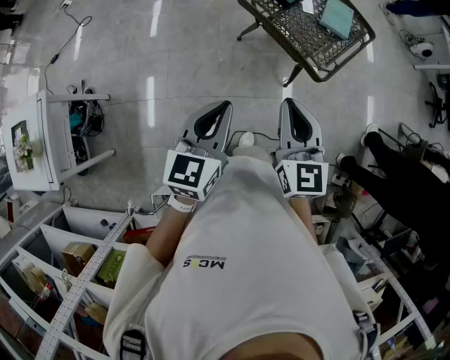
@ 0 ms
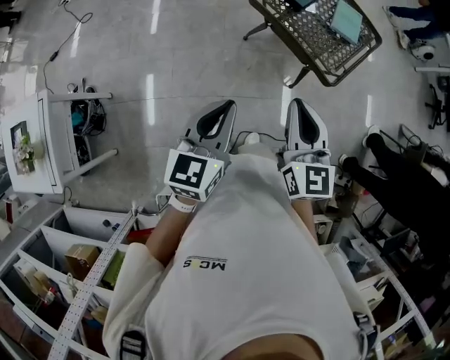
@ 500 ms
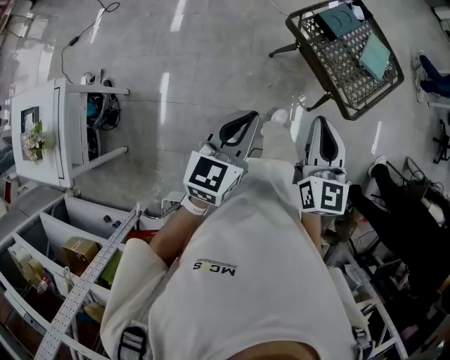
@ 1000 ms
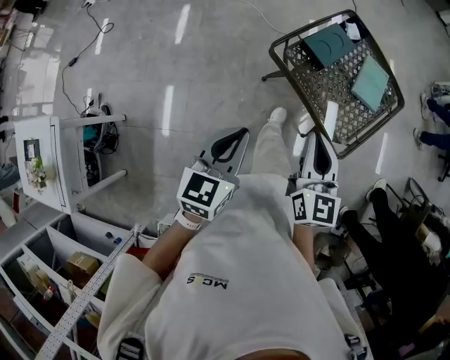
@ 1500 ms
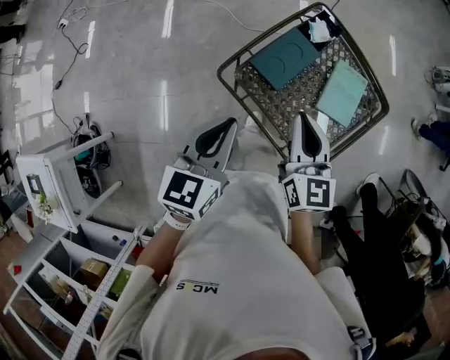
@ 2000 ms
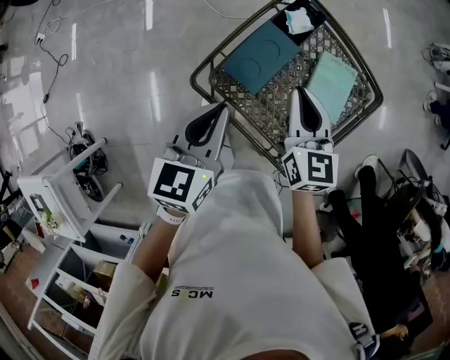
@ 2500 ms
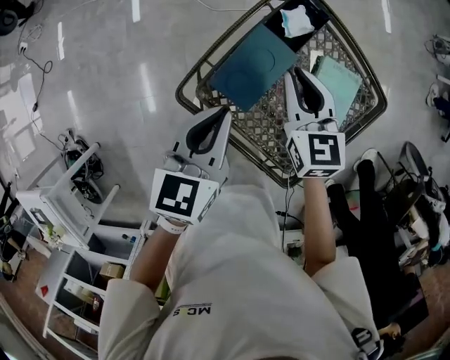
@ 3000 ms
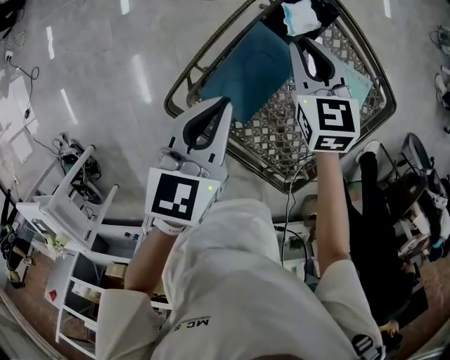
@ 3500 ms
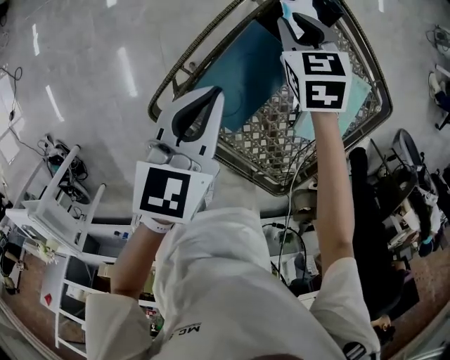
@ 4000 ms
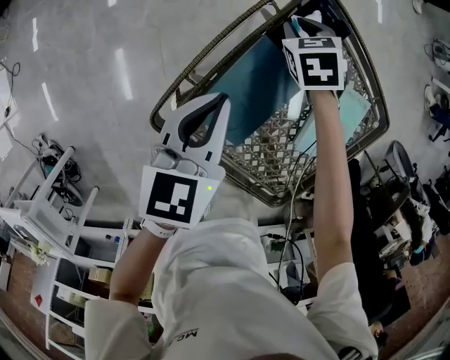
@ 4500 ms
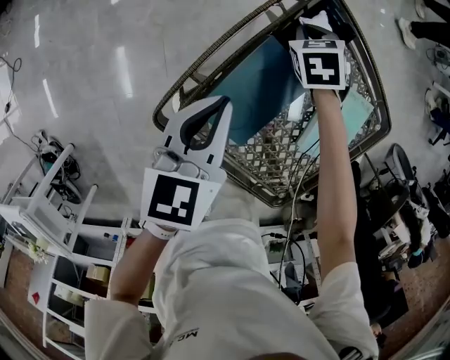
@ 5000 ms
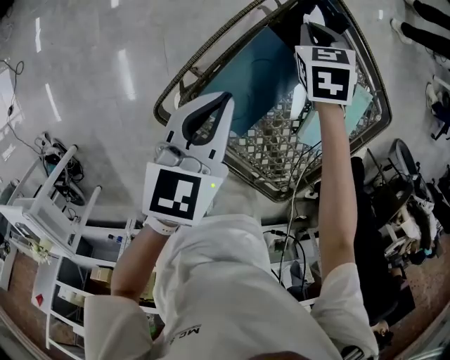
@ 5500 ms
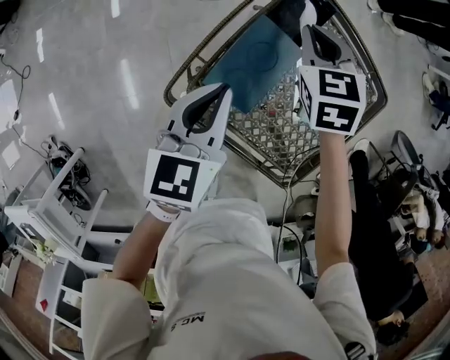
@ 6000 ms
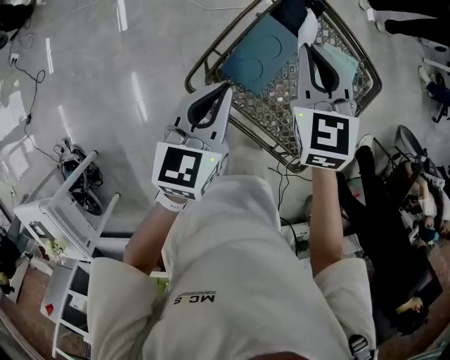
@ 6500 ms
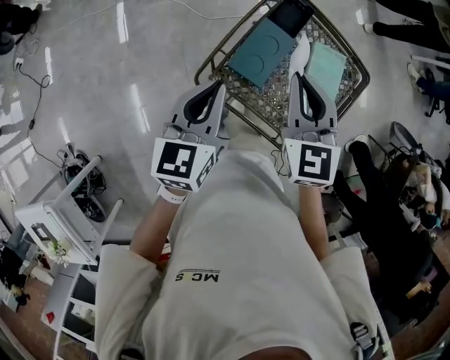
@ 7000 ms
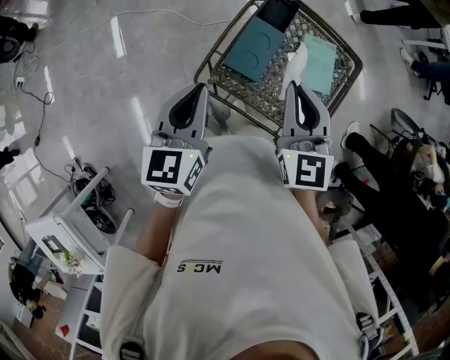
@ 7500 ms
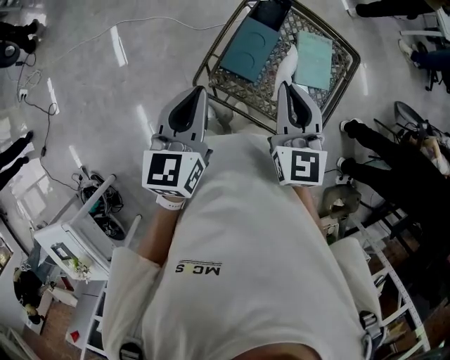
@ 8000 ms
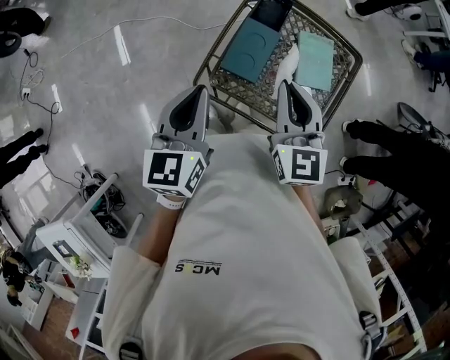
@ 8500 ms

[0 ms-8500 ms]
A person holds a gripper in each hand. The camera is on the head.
0 ms to 2000 ms: The grippers both shift forward by approximately 40 cm.
2000 ms to 4000 ms: Both grippers travel together forward and downward, approximately 30 cm. The right gripper angles its fingers downward, by some 40 degrees.
4000 ms to 6500 ms: The left gripper travels upward and backward by roughly 10 cm; the right gripper shifts some 25 cm upward and backward, and turns by some 20 degrees.
6500 ms to 8500 ms: The right gripper moves backward and upward, roughly 15 cm, and rotates about 20 degrees, while the left gripper moves upward and to the left, roughly 10 cm.

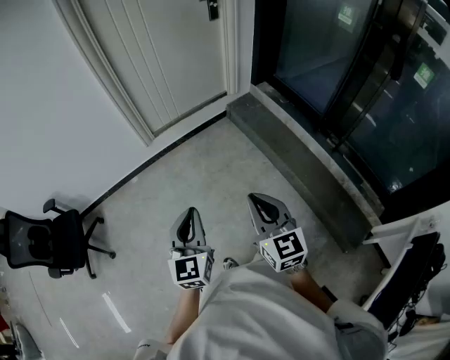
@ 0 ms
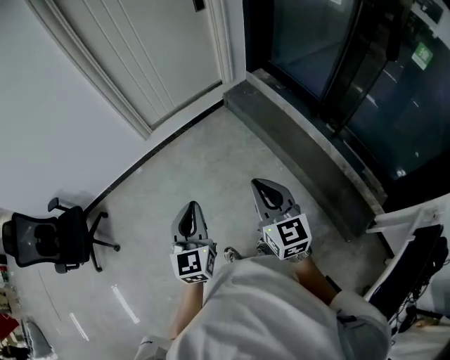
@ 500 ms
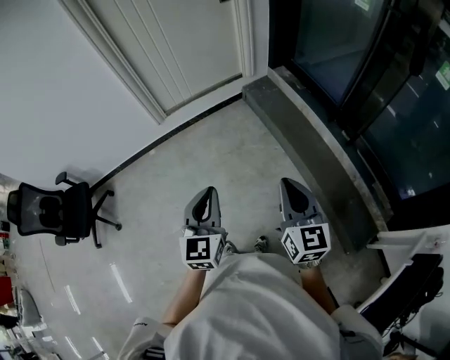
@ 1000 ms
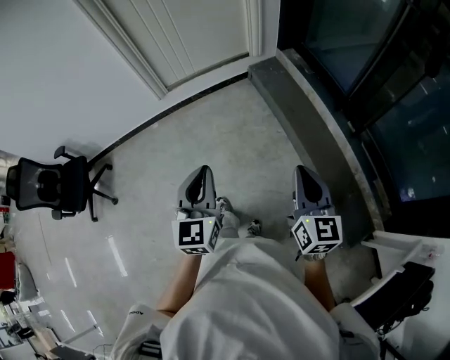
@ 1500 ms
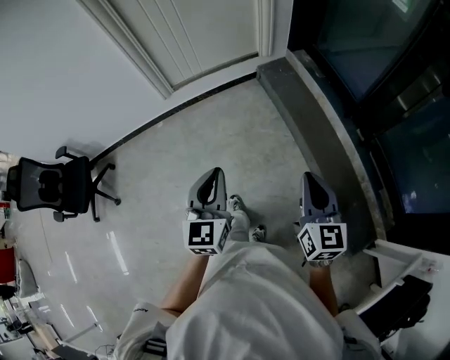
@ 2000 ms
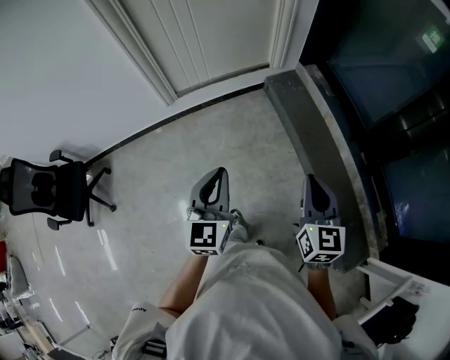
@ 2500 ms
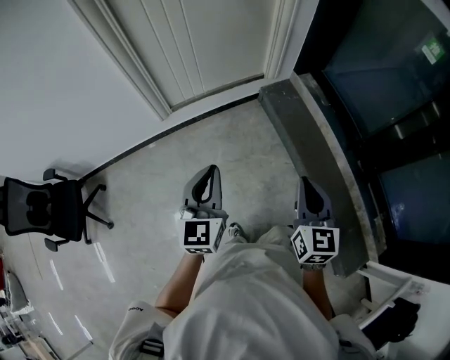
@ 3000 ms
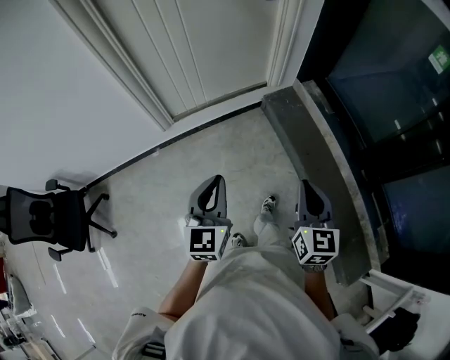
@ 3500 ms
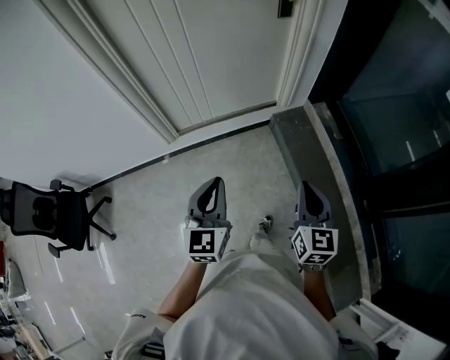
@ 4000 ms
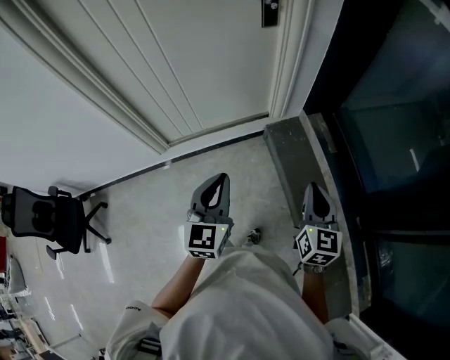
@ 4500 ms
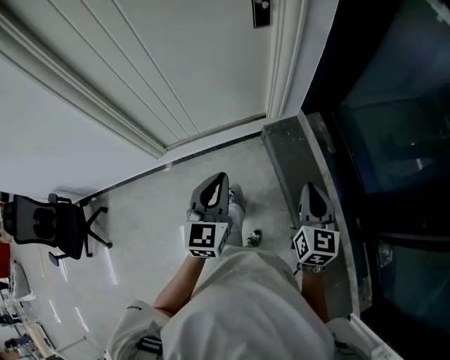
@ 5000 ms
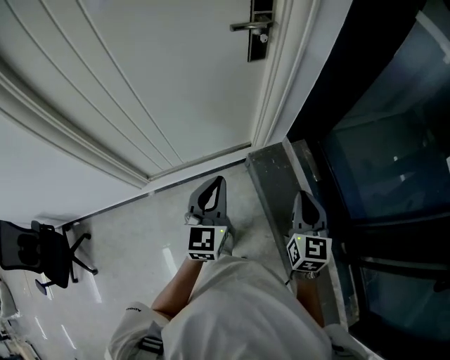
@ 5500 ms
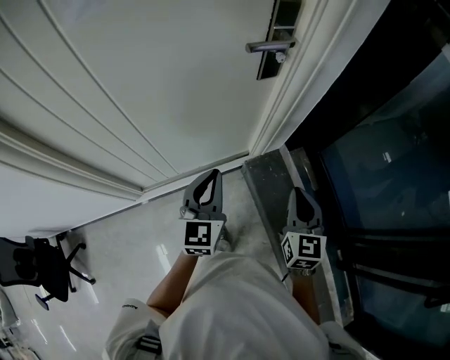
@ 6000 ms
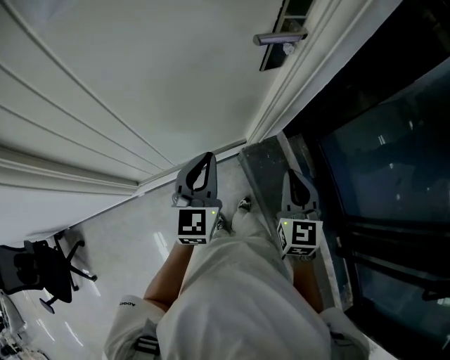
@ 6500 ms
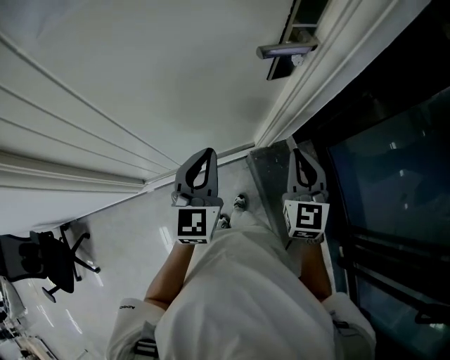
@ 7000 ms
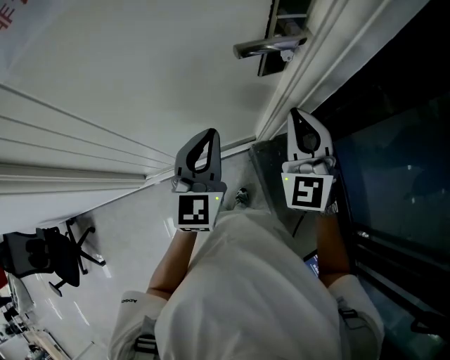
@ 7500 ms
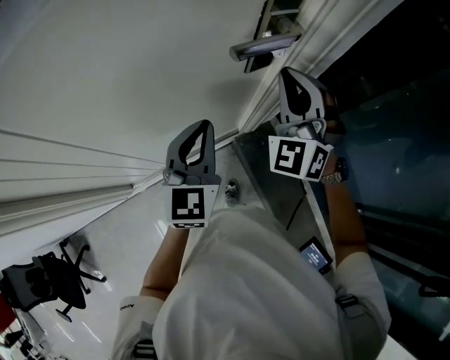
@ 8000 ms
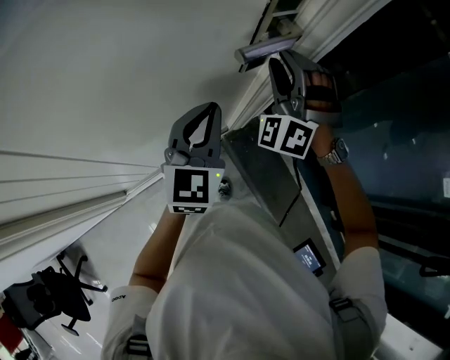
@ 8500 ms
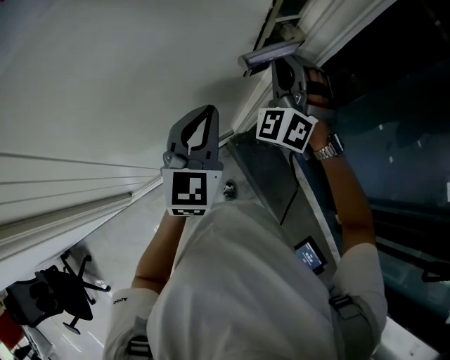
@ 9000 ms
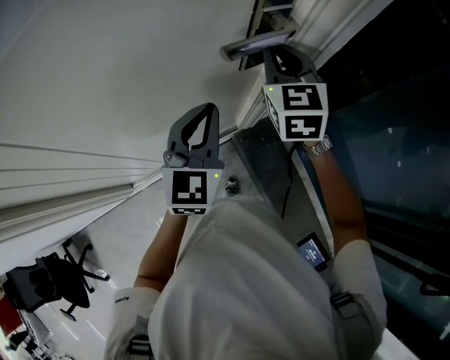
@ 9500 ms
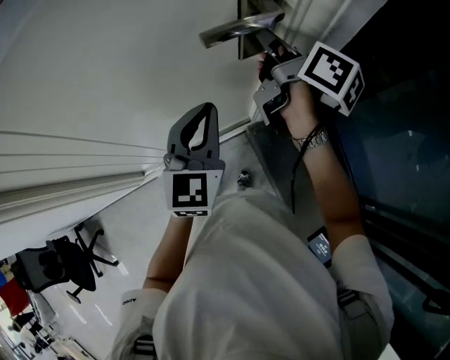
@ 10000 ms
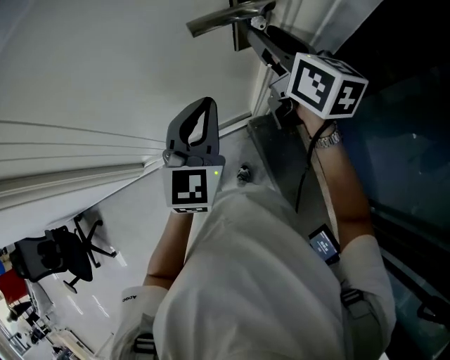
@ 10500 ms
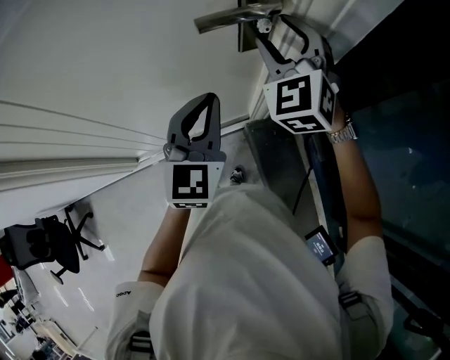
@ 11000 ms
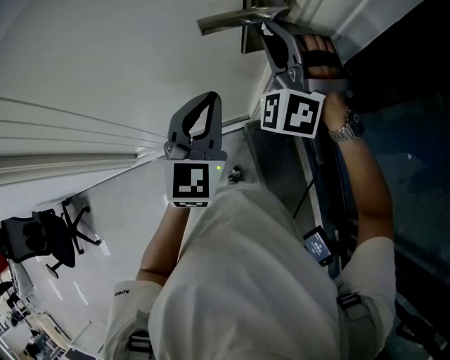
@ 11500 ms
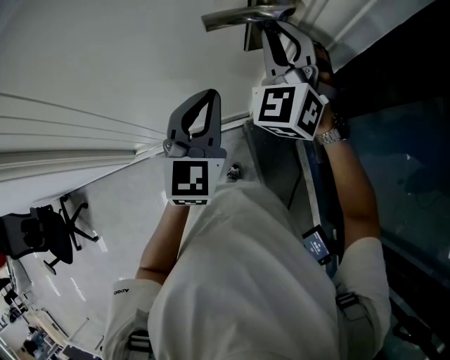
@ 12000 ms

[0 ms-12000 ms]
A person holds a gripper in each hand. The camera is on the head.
0 ms to 2000 ms: The right gripper travels to the right by approximately 25 cm. The left gripper shifts roughly 20 cm to the right and forward.
2000 ms to 4000 ms: Both grippers travel together forward, roughly 40 cm.
4000 ms to 6000 ms: Both grippers are carried forward, approximately 40 cm.
6000 ms to 8000 ms: The left gripper moves forward, about 15 cm, while the right gripper shifts approximately 30 cm forward and upward, and twists about 60 degrees counterclockwise, seen from behind.
8000 ms to 10000 ms: The right gripper shifts approximately 5 cm forward, rolls clockwise, seen from behind, by approximately 110 degrees, and opens, then closes once more.
10000 ms to 12000 ms: The right gripper twists approximately 110 degrees counterclockwise, seen from behind, and opens and closes again.

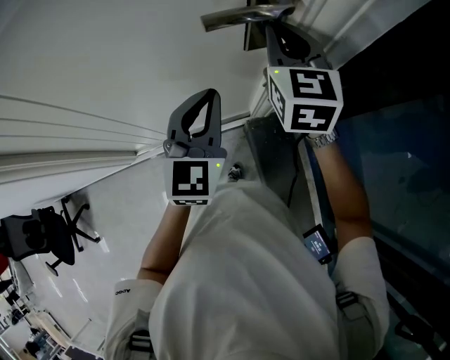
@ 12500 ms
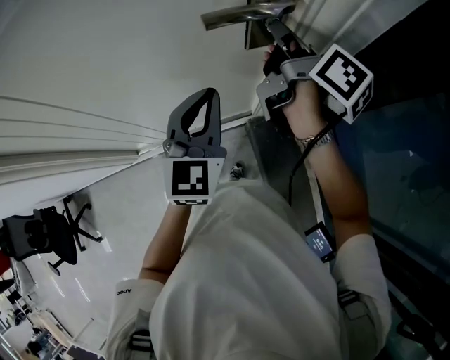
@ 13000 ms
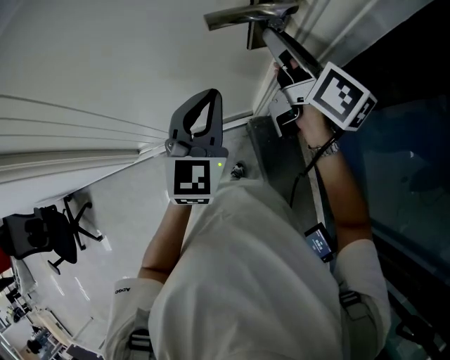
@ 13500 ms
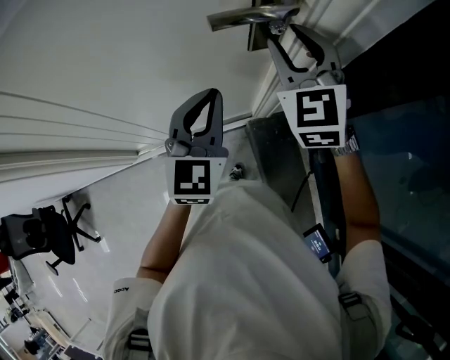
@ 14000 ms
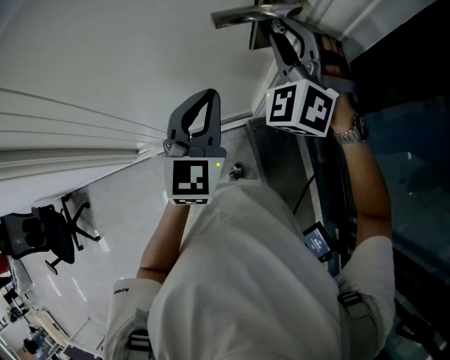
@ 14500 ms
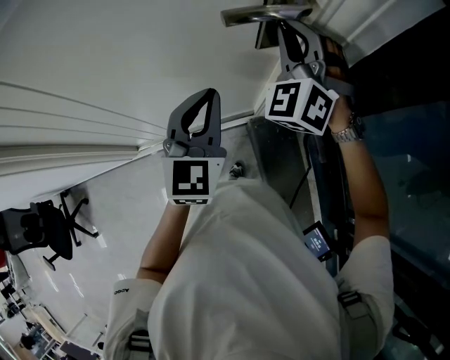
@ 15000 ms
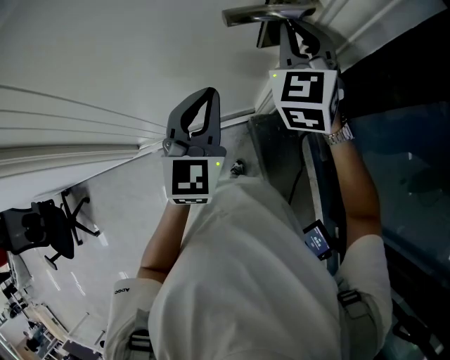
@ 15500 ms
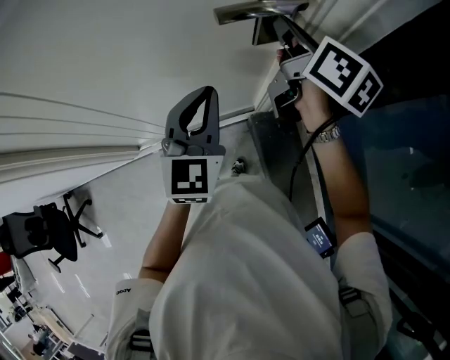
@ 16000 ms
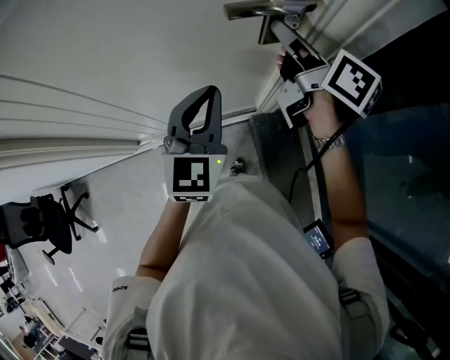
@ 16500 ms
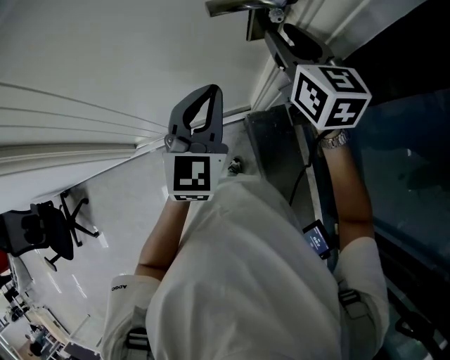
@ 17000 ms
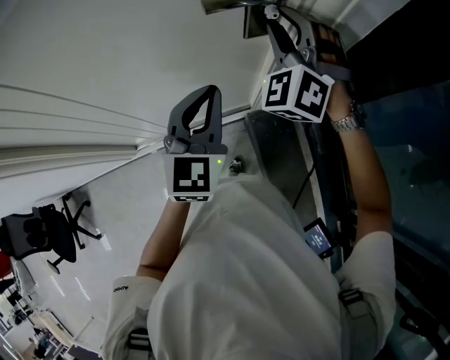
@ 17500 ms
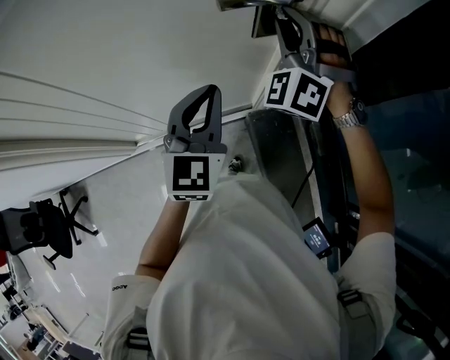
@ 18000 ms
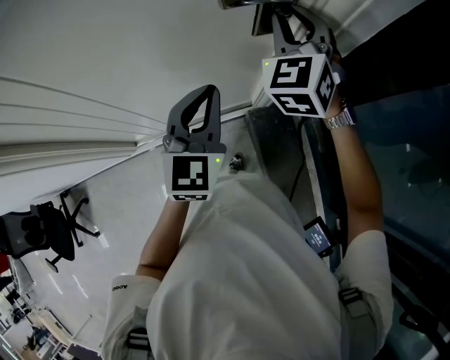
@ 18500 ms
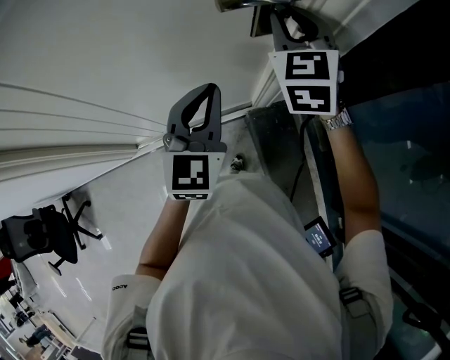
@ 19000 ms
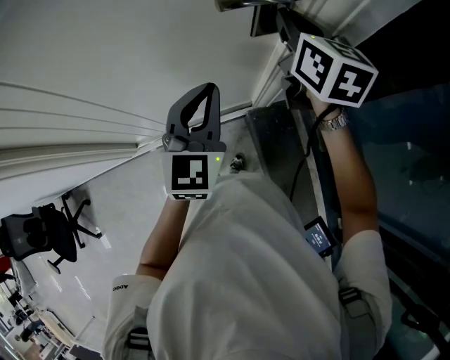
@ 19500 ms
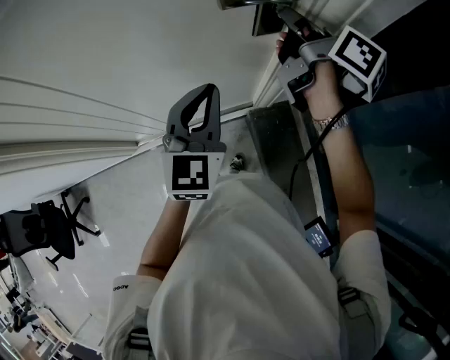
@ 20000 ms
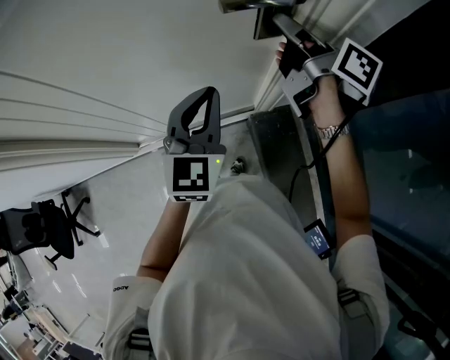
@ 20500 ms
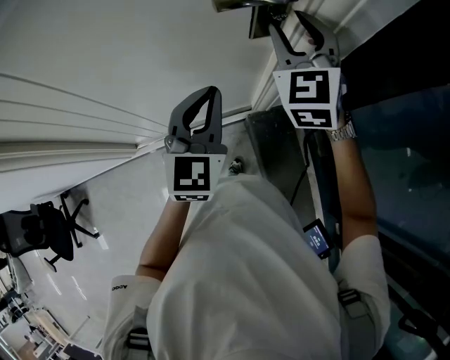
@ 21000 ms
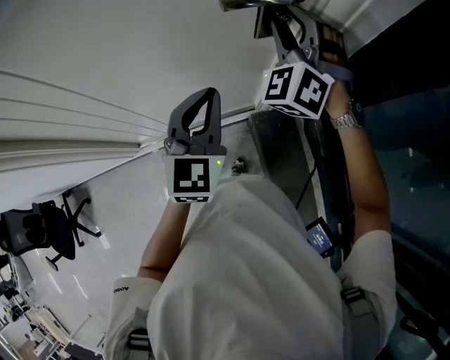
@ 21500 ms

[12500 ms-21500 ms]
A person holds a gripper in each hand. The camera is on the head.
12500 ms to 14500 ms: The right gripper twists roughly 60 degrees counterclockwise, seen from behind, and opens its fingers.
14500 ms to 17000 ms: The right gripper twists roughly 70 degrees clockwise, seen from behind, and closes and opens again.
17000 ms to 19500 ms: The right gripper closes up.
19500 ms to 21500 ms: The right gripper twists roughly 80 degrees counterclockwise, seen from behind, and opens.
